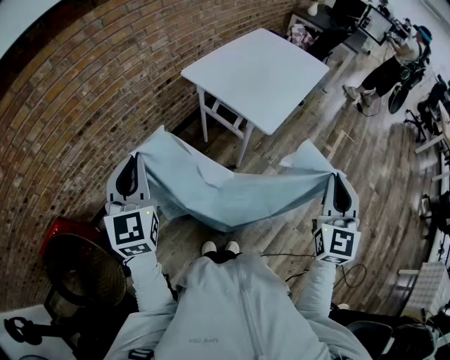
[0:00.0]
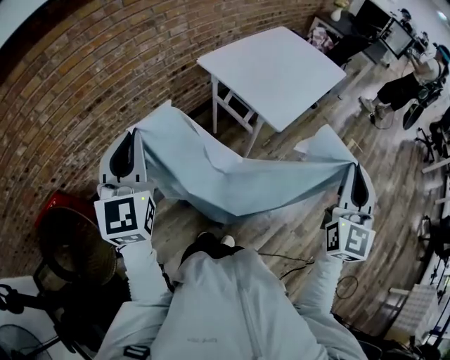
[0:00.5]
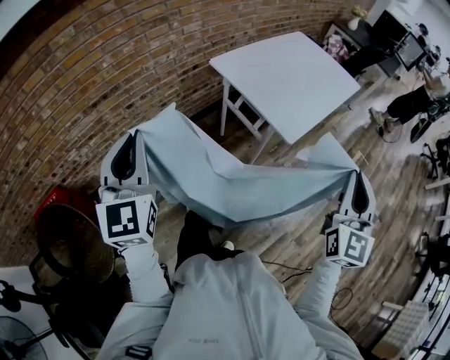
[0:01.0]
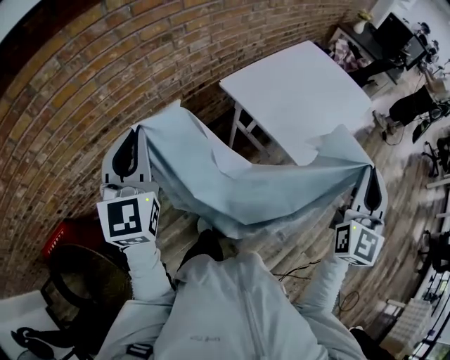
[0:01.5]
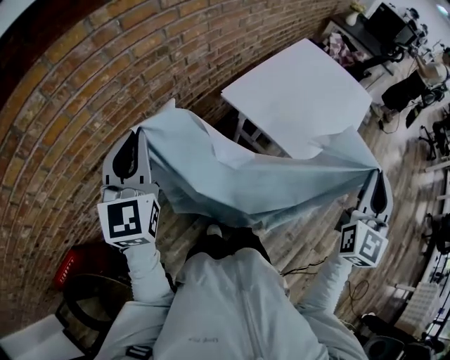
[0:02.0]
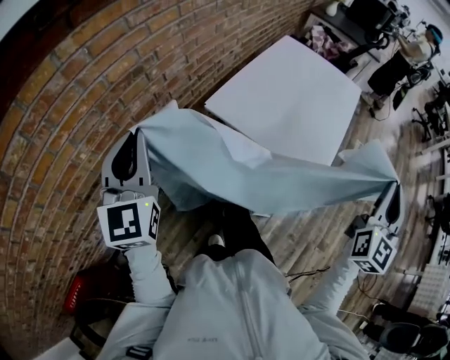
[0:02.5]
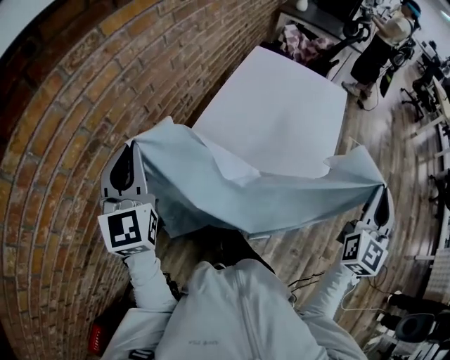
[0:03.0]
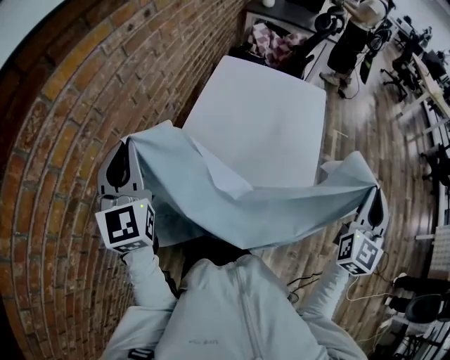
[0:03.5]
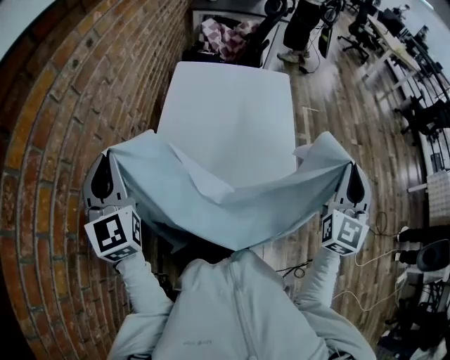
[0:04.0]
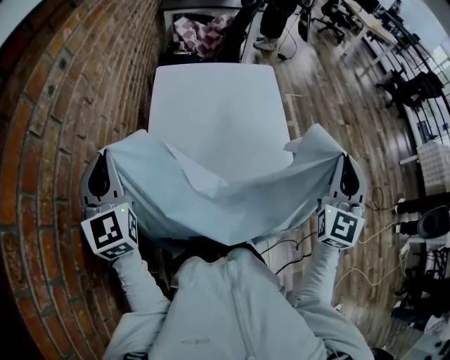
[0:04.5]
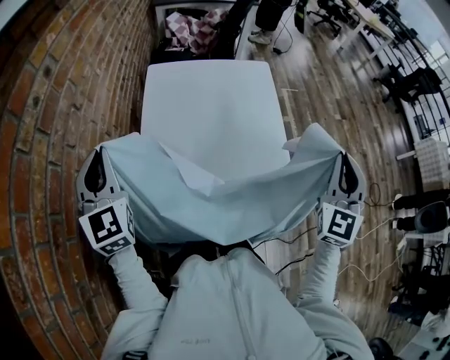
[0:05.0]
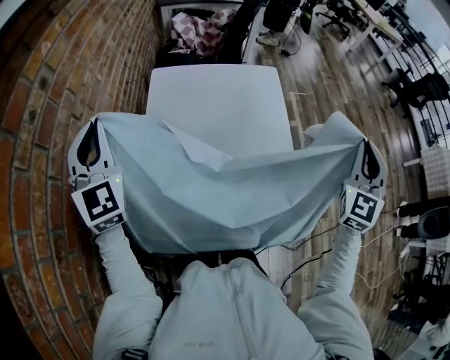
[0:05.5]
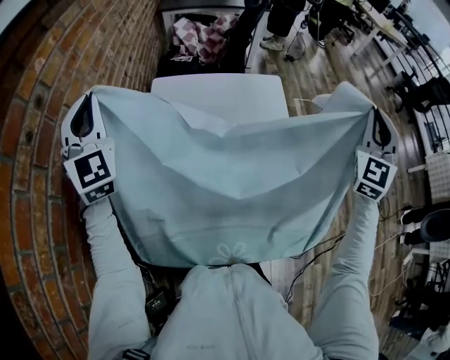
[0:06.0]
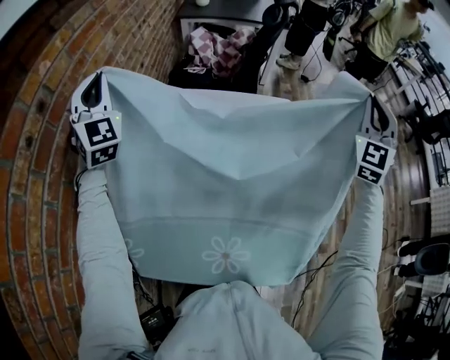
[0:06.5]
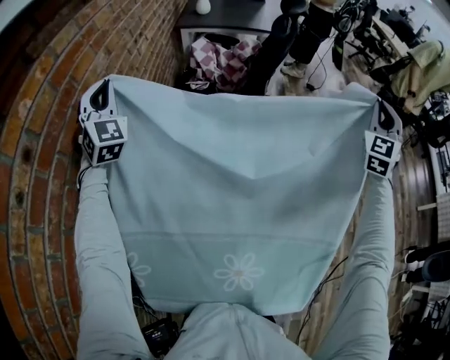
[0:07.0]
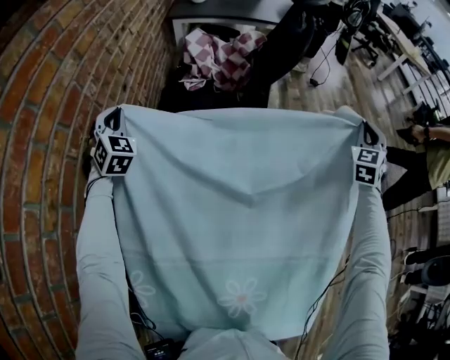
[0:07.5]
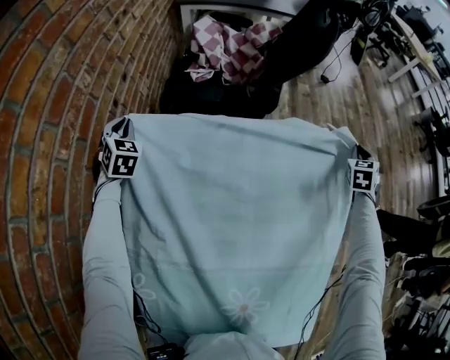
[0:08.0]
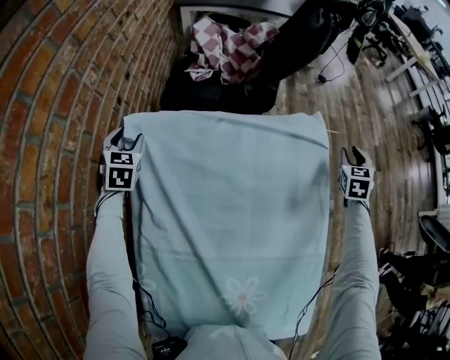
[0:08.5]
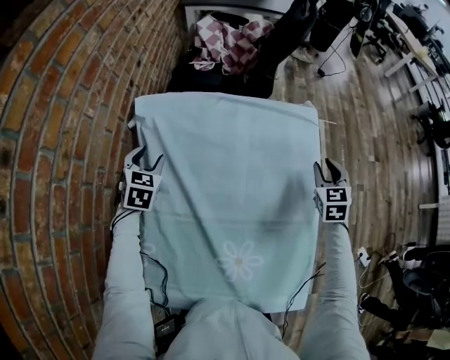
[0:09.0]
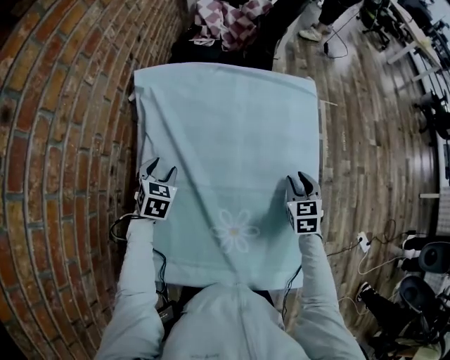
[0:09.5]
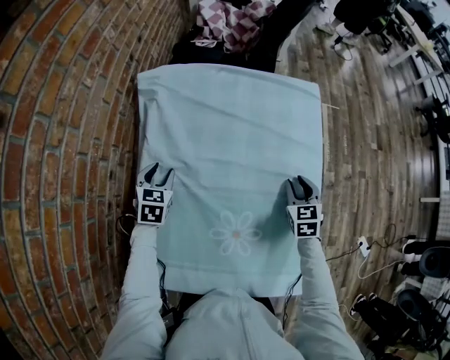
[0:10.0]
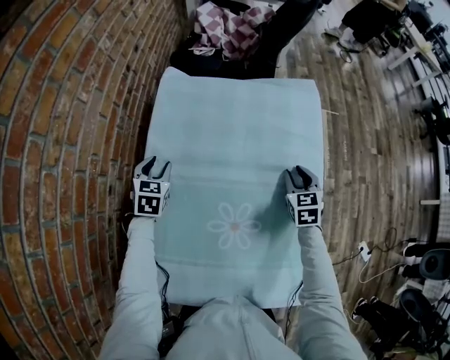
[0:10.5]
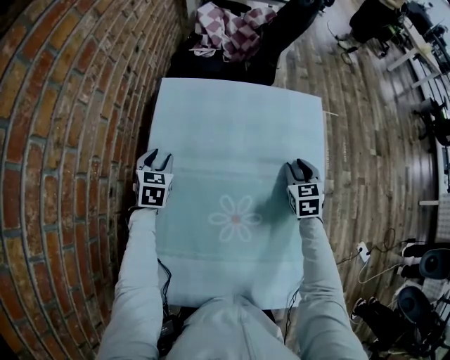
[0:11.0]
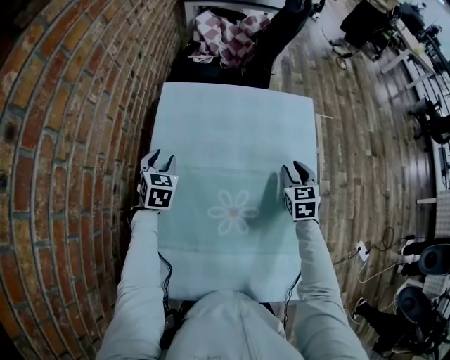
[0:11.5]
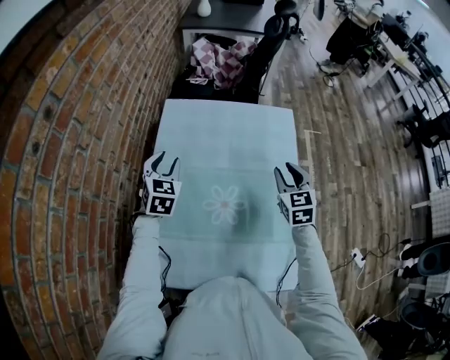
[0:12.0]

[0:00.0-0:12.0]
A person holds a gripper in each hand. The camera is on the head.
0:00.0 to 0:02.0: The two grippers go some 30 cm forward and to the left.
0:02.0 to 0:04.0: The right gripper shifts by about 25 cm, and rotates about 40 degrees; the left gripper ends up some 50 cm from where it was, and turns by roughly 30 degrees.
0:04.0 to 0:06.0: The two grippers go some 25 cm forward. The left gripper turns by roughly 20 degrees. Meanwhile the right gripper changes its angle by roughly 20 degrees.
0:06.0 to 0:08.0: The two grippers go roughly 50 cm downward and forward. The right gripper tilts its fingers about 40 degrees downward. The left gripper points its fingers about 40 degrees further downward.
0:08.0 to 0:10.0: The right gripper shifts roughly 35 cm backward and to the left, changes its angle by approximately 30 degrees, and opens its fingers. Meanwhile the left gripper goes approximately 35 cm backward and to the right, rotates approximately 30 degrees, and opens its fingers.
0:10.0 to 0:12.0: Both grippers travel together upward, about 15 cm.

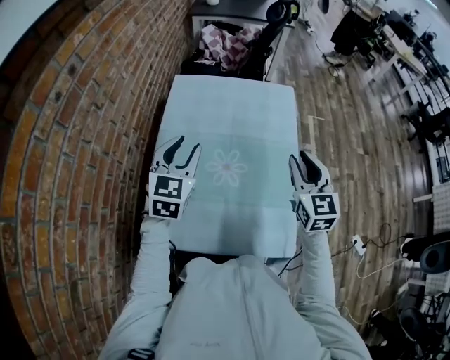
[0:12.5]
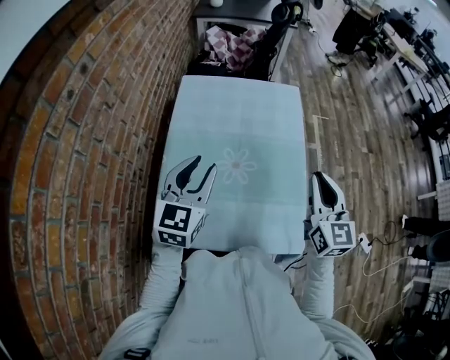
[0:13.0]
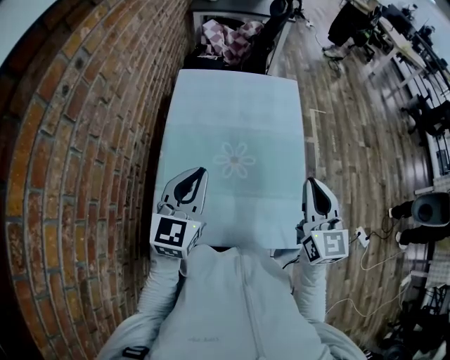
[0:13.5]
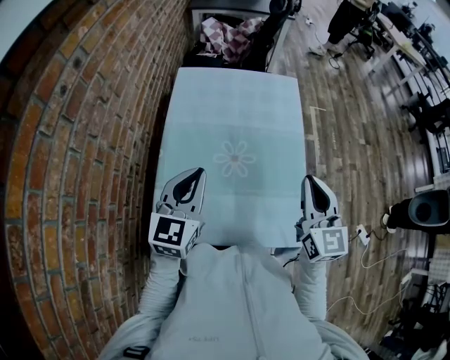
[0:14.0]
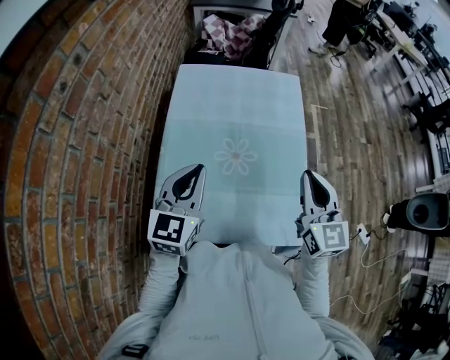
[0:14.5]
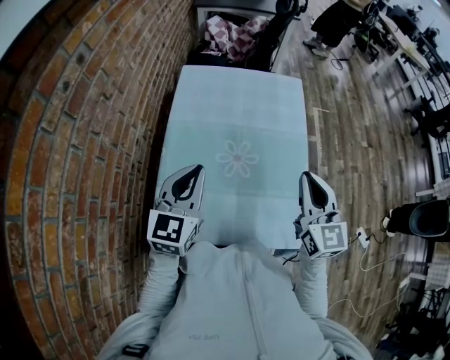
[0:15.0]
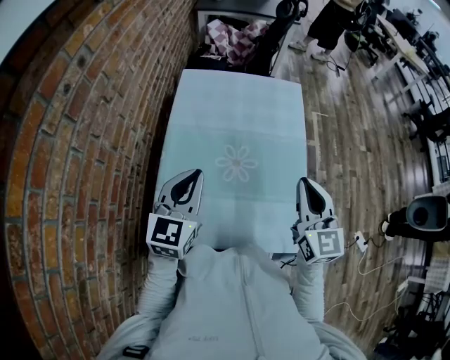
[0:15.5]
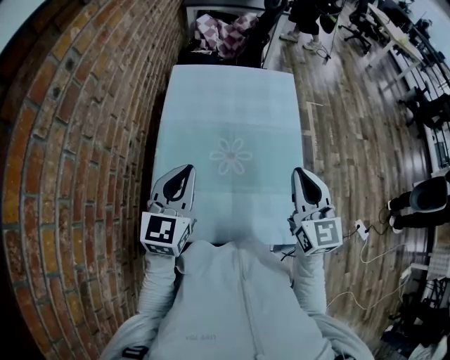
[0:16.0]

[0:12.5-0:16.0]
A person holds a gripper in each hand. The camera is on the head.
0:12.5 to 0:14.5: The two grippers go approximately 10 cm backward. The right gripper closes its fingers. The left gripper closes its fingers.
0:14.5 to 0:16.0: The two grippers keep their place.

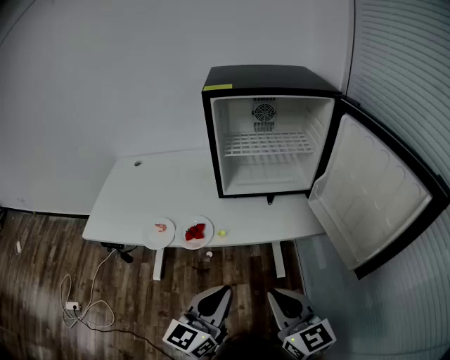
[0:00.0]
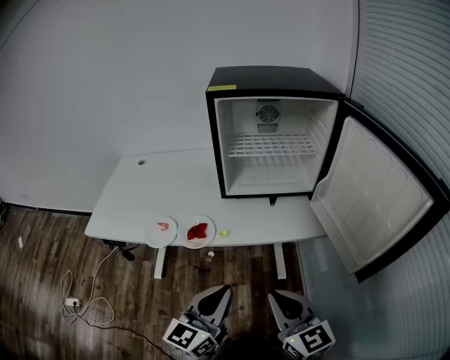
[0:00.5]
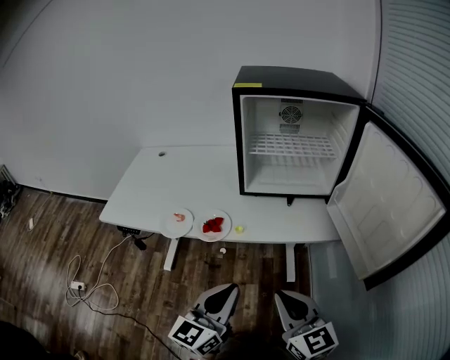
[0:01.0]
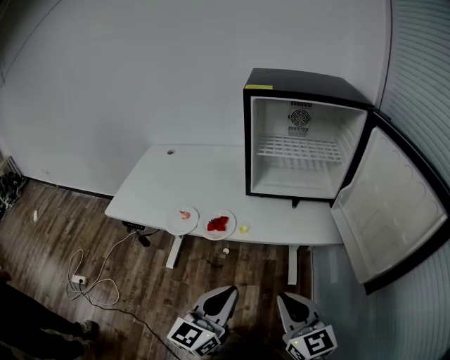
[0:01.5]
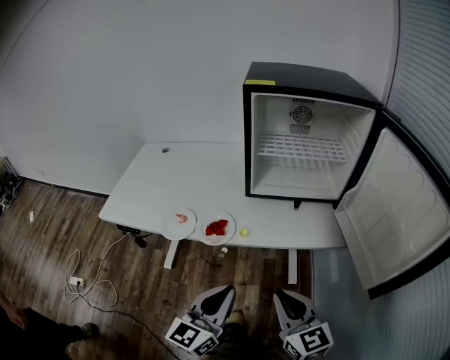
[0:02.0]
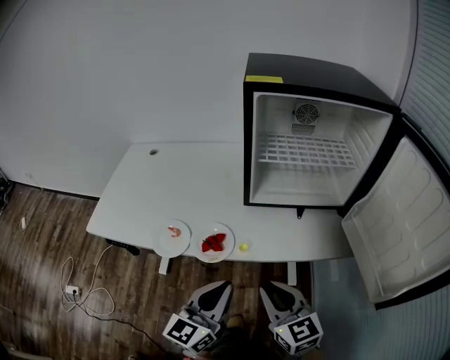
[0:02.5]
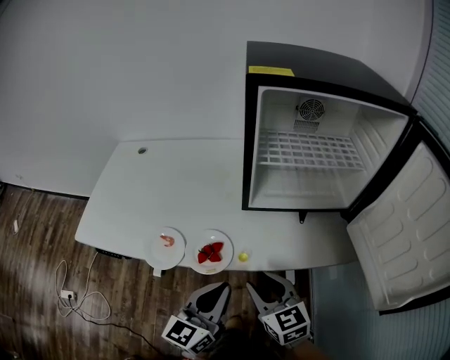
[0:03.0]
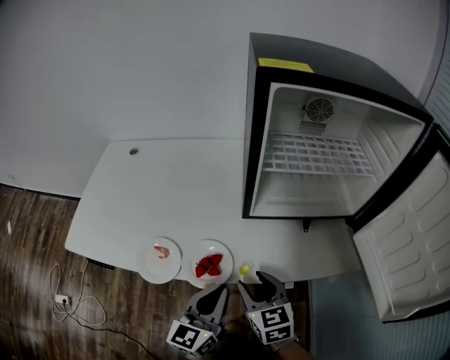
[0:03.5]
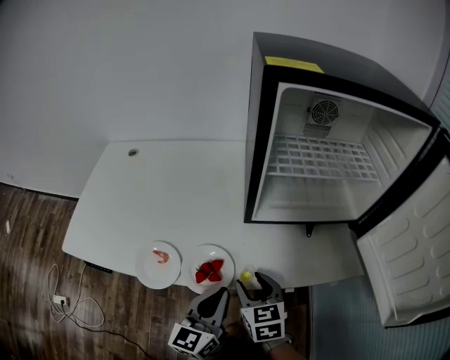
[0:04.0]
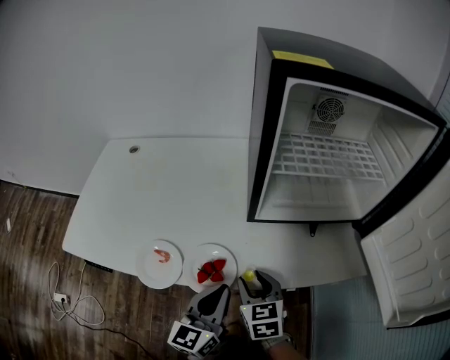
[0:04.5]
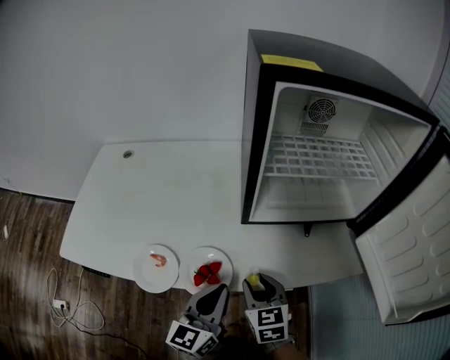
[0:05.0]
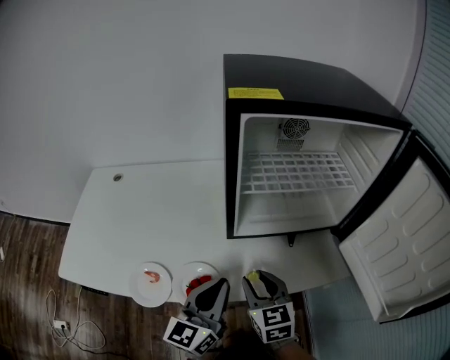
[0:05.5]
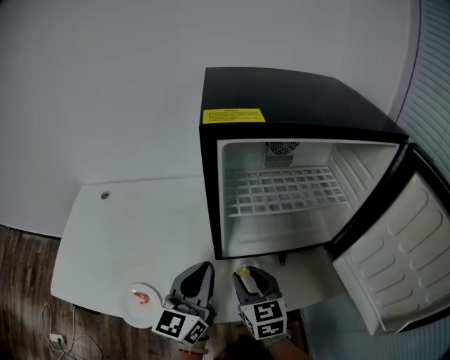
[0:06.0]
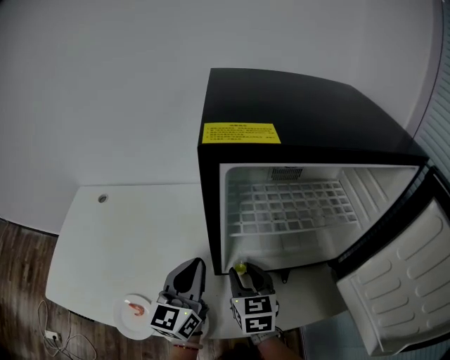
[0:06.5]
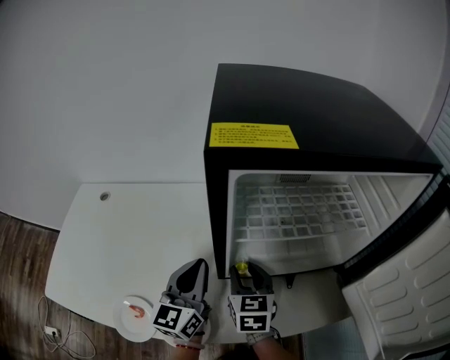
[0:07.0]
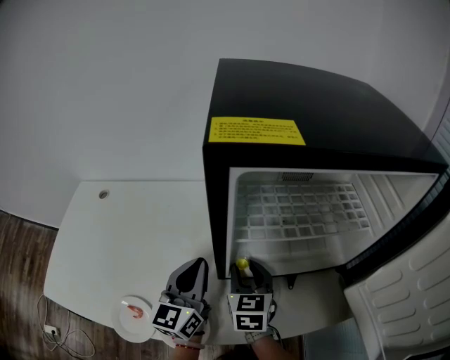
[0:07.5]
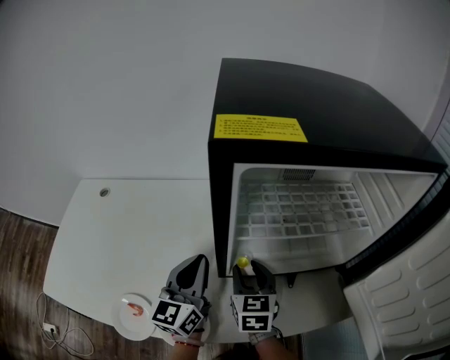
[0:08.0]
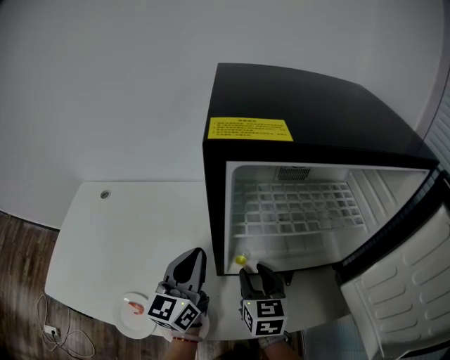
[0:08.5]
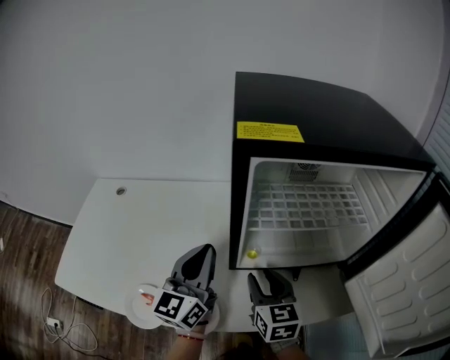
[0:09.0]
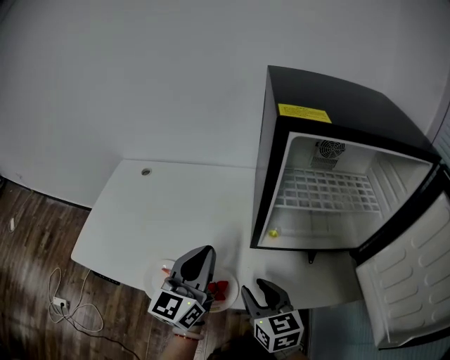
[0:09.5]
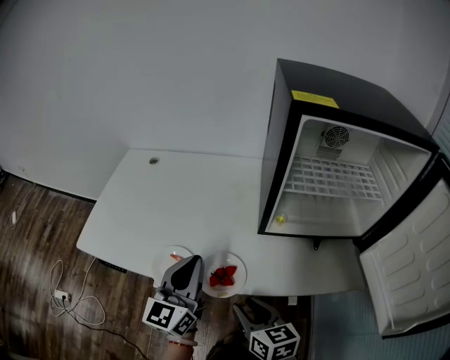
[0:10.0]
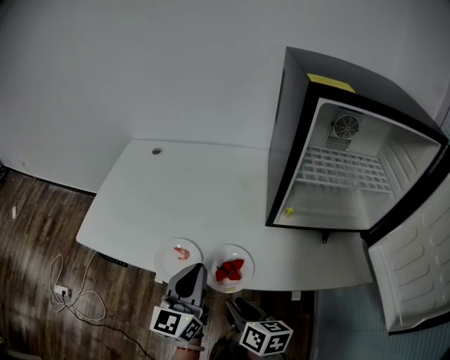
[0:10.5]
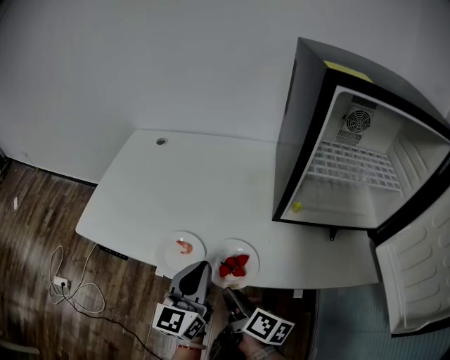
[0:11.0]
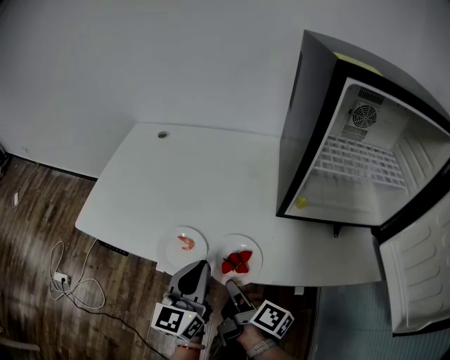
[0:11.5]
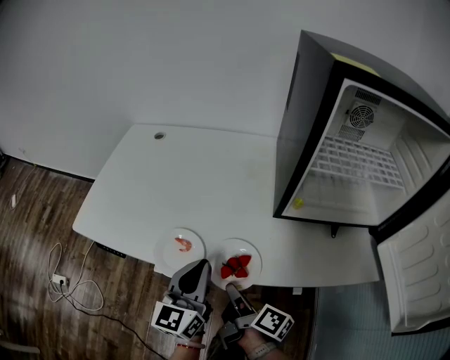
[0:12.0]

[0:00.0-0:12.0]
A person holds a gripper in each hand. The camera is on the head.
0:00.0 to 0:02.0: The right gripper changes place by some 5 cm.
0:02.0 to 0:04.0: The right gripper shifts approximately 30 cm forward, downward and to the left, rotates approximately 30 degrees, and opens, while the left gripper goes approximately 20 cm forward and downward.
0:04.0 to 0:06.0: The grippers both shift forward and upward by approximately 15 cm.
0:06.0 to 0:08.0: Both grippers travel together forward, about 10 cm.
0:08.0 to 0:10.0: The two grippers go approximately 25 cm backward and to the left. The right gripper changes its angle by approximately 30 degrees.
0:10.0 to 0:12.0: The grippers both shift downward by approximately 10 cm. The right gripper rolls clockwise, seen from behind, by roughly 60 degrees, and closes up.
